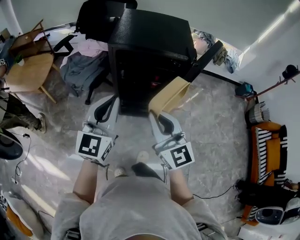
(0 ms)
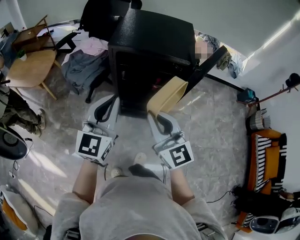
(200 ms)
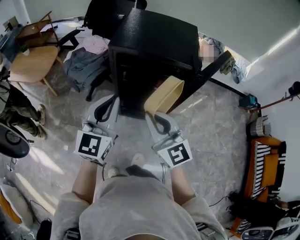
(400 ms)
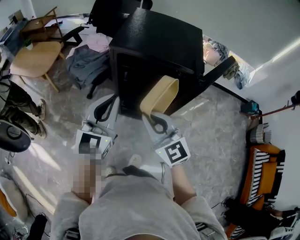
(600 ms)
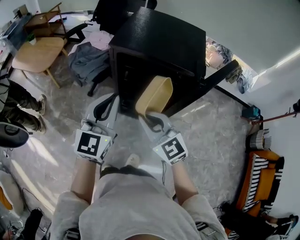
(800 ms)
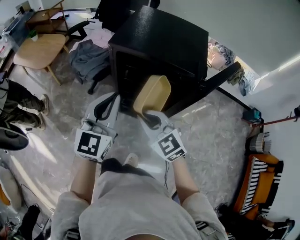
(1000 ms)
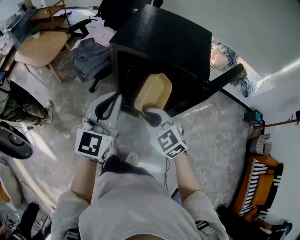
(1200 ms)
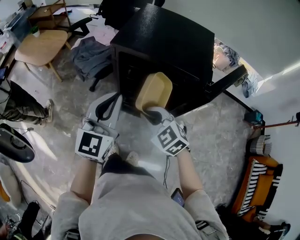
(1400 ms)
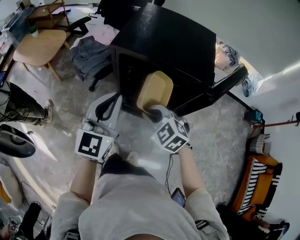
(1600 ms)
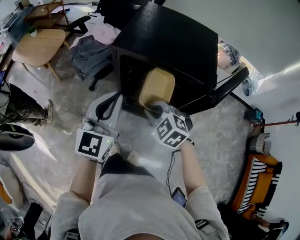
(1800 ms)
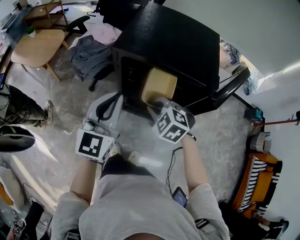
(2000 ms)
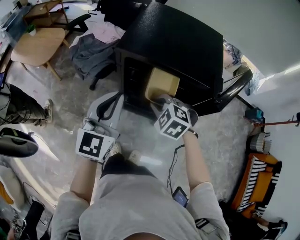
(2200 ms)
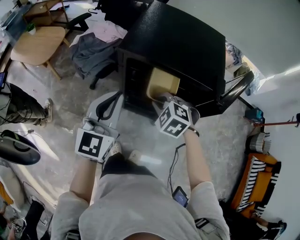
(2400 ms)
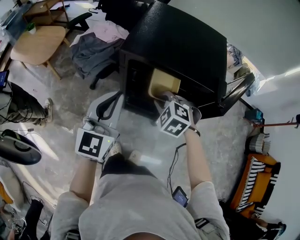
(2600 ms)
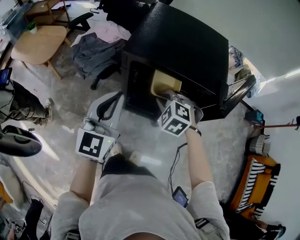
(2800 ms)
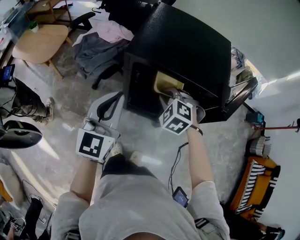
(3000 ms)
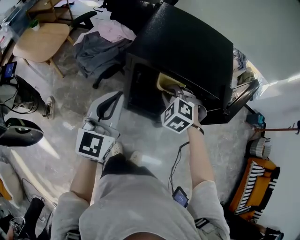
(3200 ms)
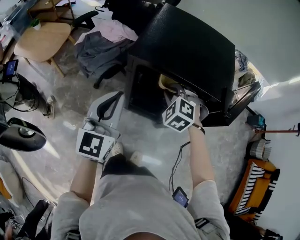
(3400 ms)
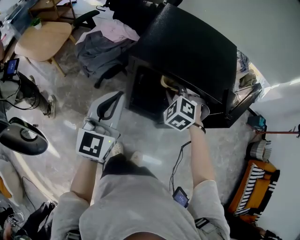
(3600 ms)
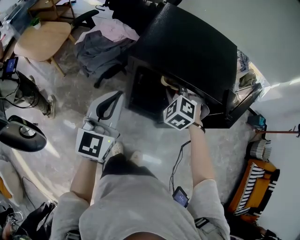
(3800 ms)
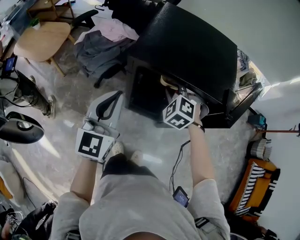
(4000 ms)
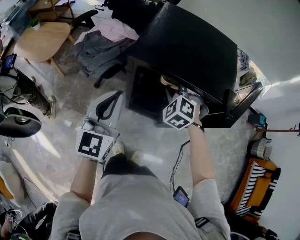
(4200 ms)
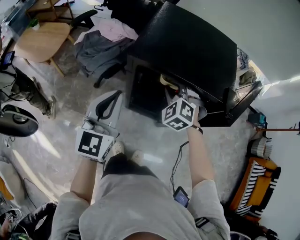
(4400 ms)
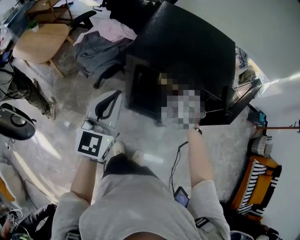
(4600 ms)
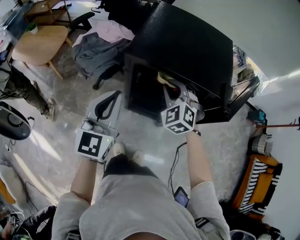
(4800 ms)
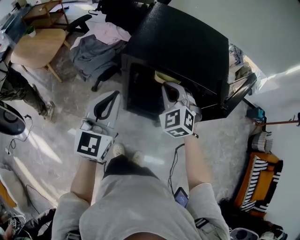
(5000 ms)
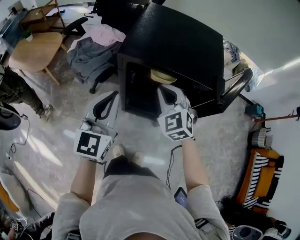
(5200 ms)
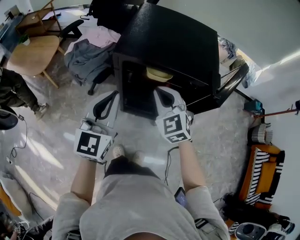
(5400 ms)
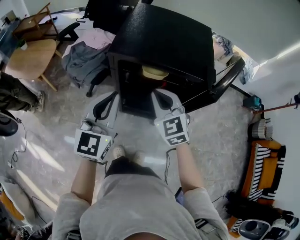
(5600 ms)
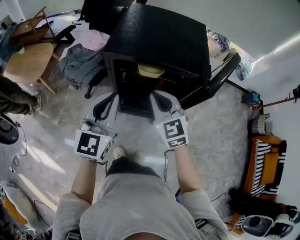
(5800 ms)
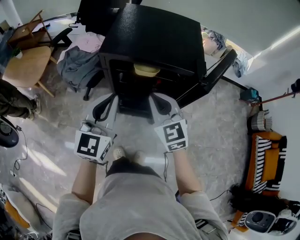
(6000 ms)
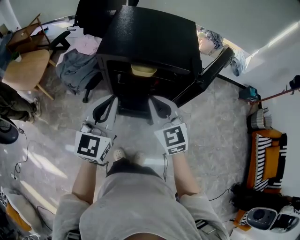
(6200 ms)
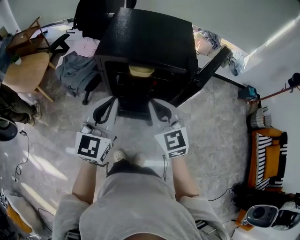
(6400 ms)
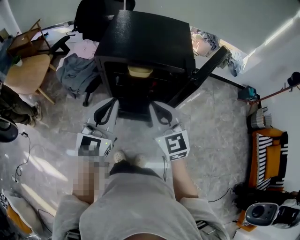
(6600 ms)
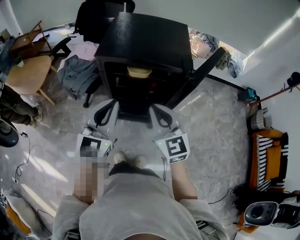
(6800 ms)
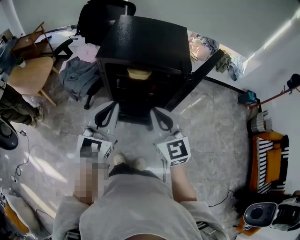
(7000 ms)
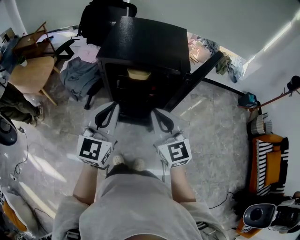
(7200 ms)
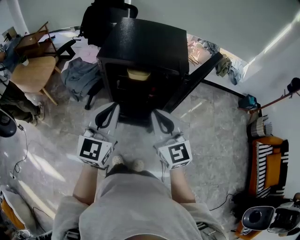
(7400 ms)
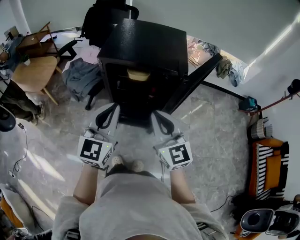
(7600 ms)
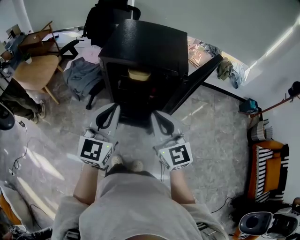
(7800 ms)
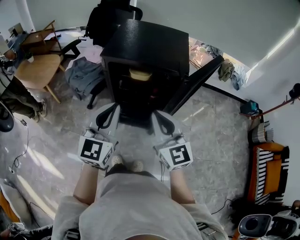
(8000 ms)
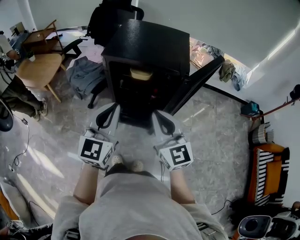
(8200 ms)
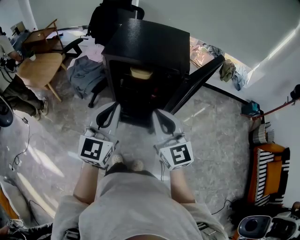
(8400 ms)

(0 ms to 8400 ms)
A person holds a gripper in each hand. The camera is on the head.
0 ms - 1400 ms: The left gripper travels forward and to the right by about 10 cm; the right gripper moves downward and forward, about 15 cm, and angles its fingers downward, by approximately 40 degrees.
1400 ms - 2800 ms: The right gripper is displaced forward by some 10 cm, and changes its angle by roughly 30 degrees, while the left gripper shifts roughly 5 cm forward.
2800 ms - 4200 ms: The right gripper goes roughly 10 cm forward.
4200 ms - 5600 ms: The left gripper shifts by roughly 5 cm. The right gripper goes about 15 cm backward and upward, and swivels some 40 degrees.
5600 ms - 7000 ms: The left gripper goes roughly 10 cm backward and to the right, while the right gripper goes approximately 15 cm backward, to the right and upward, and turns by roughly 20 degrees.
7000 ms - 8400 ms: The right gripper changes place by about 5 cm. The left gripper changes place by approximately 5 cm.

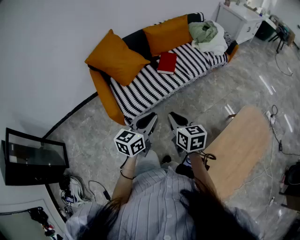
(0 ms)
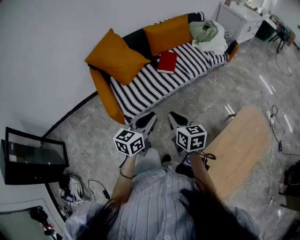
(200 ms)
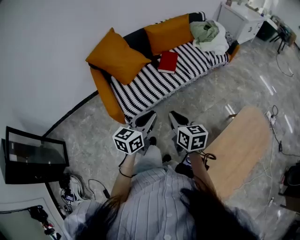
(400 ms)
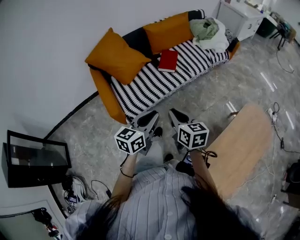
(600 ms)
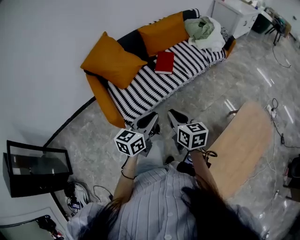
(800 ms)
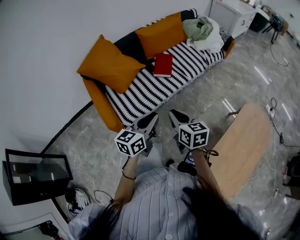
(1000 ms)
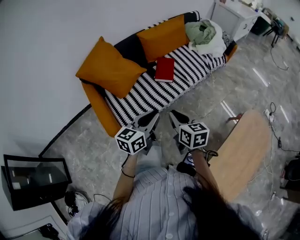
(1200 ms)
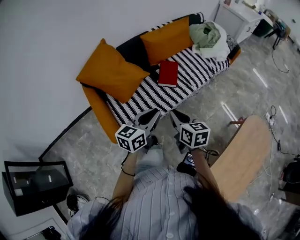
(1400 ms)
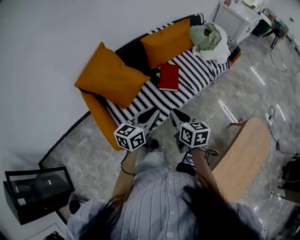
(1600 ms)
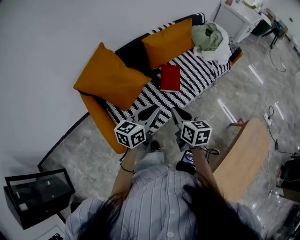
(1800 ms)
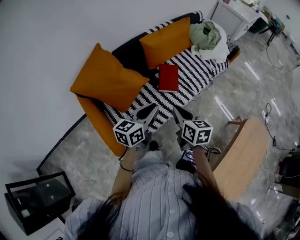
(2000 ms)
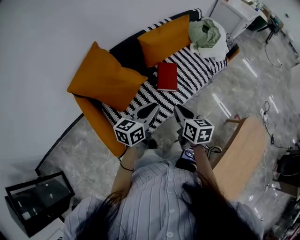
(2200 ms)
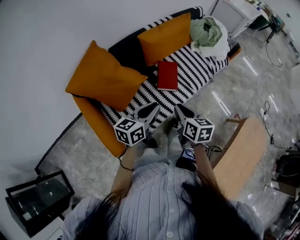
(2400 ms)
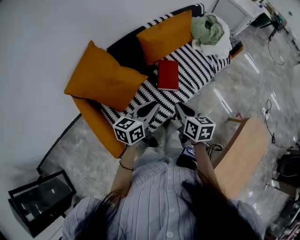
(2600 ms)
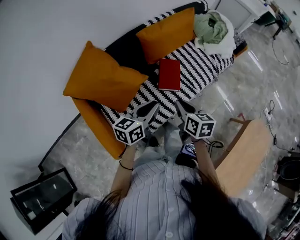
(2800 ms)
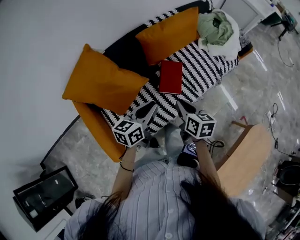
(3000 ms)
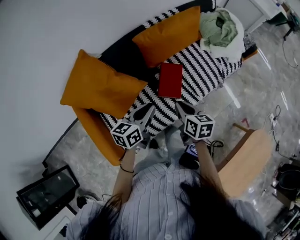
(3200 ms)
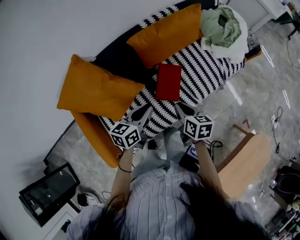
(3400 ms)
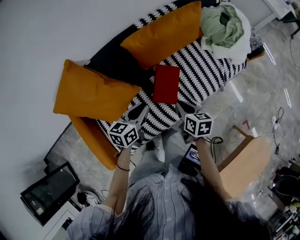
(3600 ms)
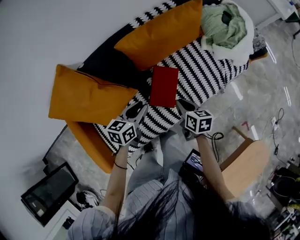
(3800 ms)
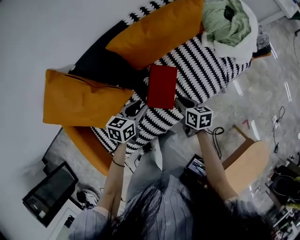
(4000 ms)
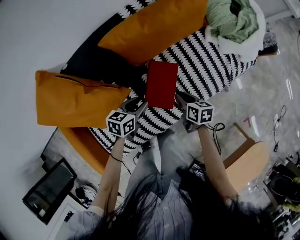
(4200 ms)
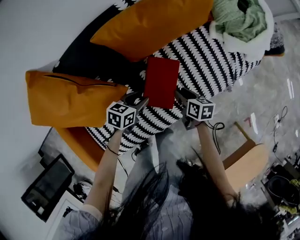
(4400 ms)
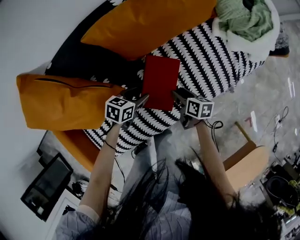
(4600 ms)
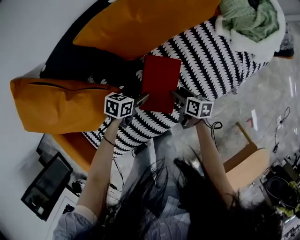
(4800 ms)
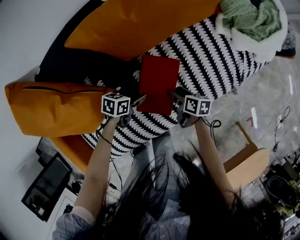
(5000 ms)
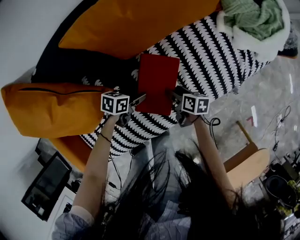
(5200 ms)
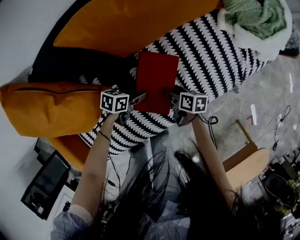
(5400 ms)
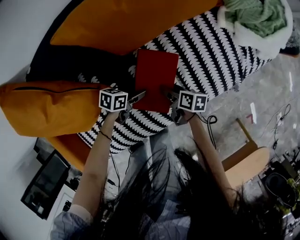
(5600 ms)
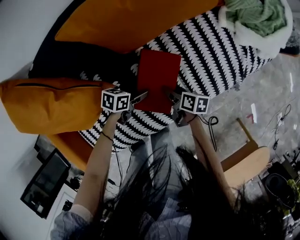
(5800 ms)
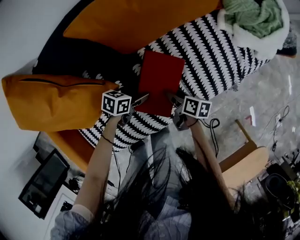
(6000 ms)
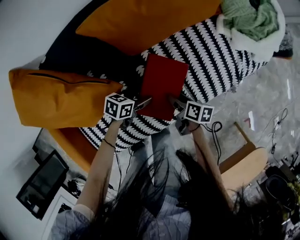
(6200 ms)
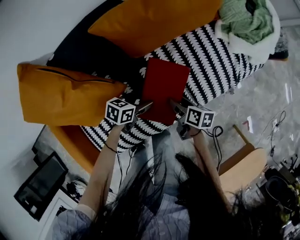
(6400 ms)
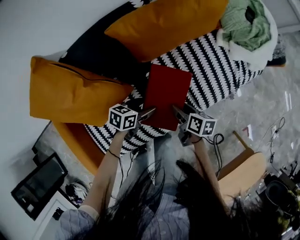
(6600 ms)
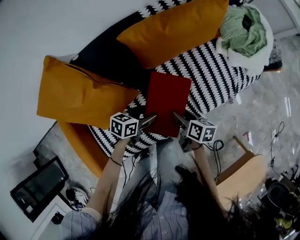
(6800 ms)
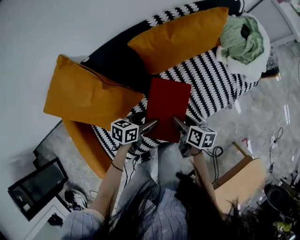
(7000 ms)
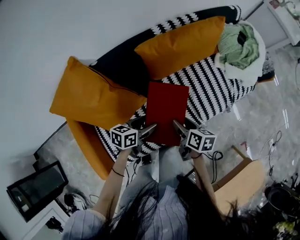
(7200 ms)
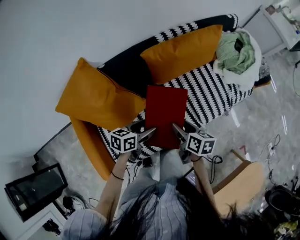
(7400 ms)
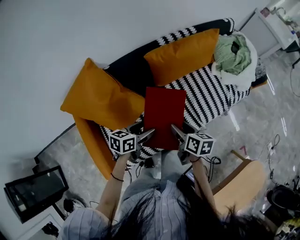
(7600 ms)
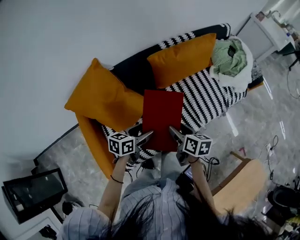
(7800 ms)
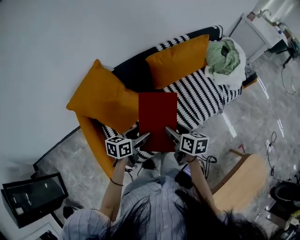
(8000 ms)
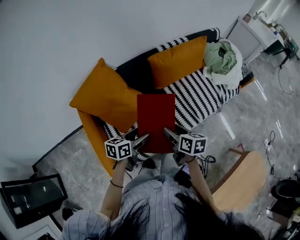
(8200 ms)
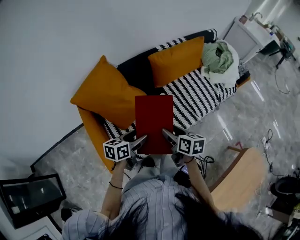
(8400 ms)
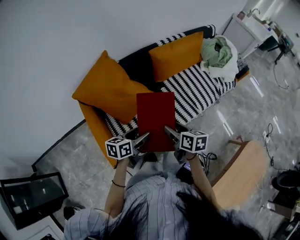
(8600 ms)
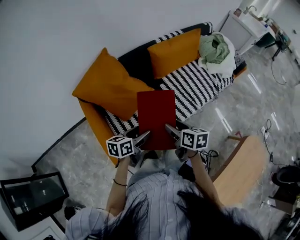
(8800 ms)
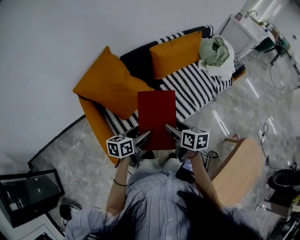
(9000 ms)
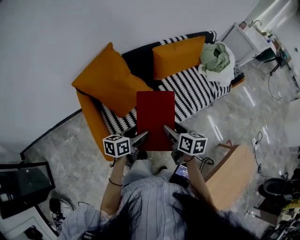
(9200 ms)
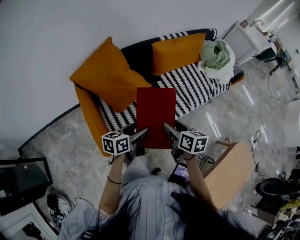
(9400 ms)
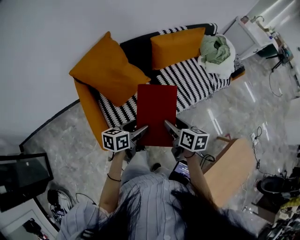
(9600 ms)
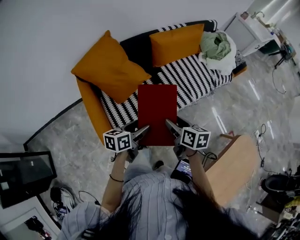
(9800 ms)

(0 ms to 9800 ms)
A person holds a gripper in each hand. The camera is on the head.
0 ms - 1400 ms: Both grippers move forward, roughly 20 cm.
1400 ms - 2800 ms: The grippers both shift forward by some 20 cm.
2800 ms - 4200 ms: Both grippers travel together downward and forward, approximately 40 cm. The right gripper changes its angle by approximately 20 degrees. The left gripper turns by approximately 30 degrees.
4200 ms - 5600 ms: Both grippers travel together downward, some 20 cm. The left gripper rotates some 20 degrees, and opens up. The right gripper changes its angle by approximately 20 degrees, and opens its fingers.
5600 ms - 7000 ms: Both grippers move upward, approximately 25 cm.
7000 ms - 8400 ms: The two grippers go about 35 cm backward, upward and to the left.
8400 ms - 9800 ms: The grippers both shift backward by about 15 cm.

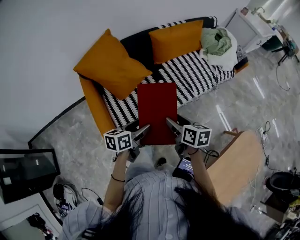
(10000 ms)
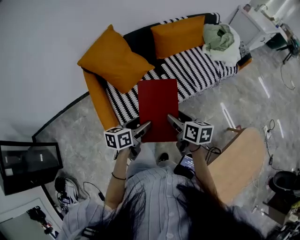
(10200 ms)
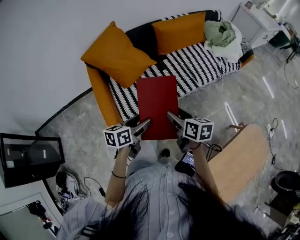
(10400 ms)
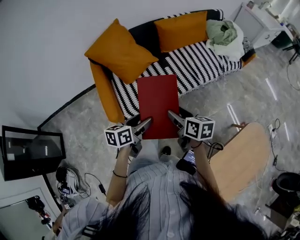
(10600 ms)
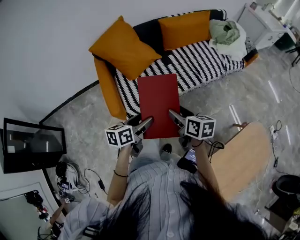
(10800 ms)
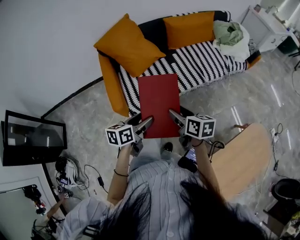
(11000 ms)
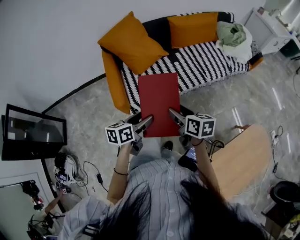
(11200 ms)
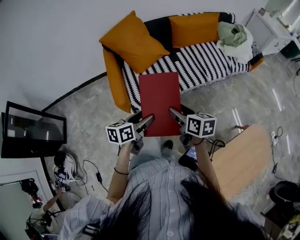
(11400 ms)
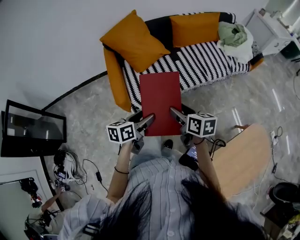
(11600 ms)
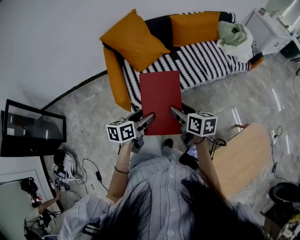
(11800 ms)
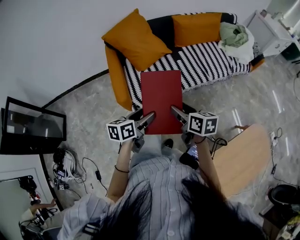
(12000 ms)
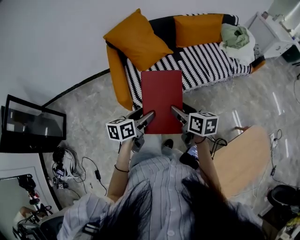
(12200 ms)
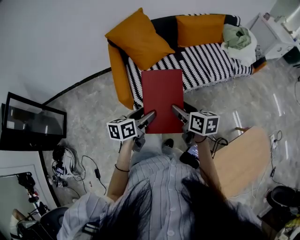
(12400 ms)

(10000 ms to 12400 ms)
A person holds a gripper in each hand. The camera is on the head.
10000 ms - 11200 ms: Both grippers travel together backward, some 15 cm.
11200 ms - 12400 ms: The grippers move only a little.

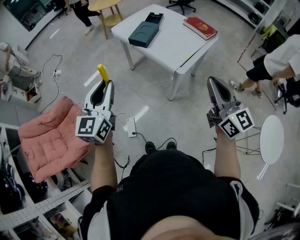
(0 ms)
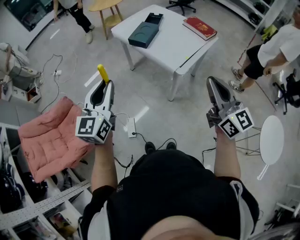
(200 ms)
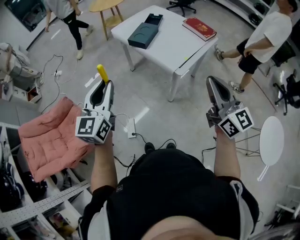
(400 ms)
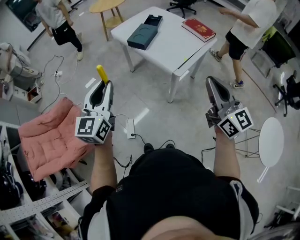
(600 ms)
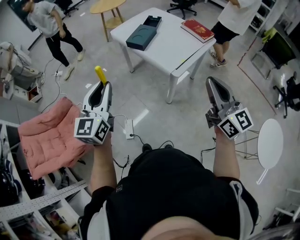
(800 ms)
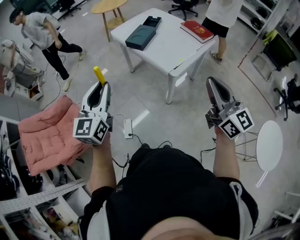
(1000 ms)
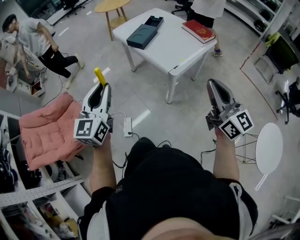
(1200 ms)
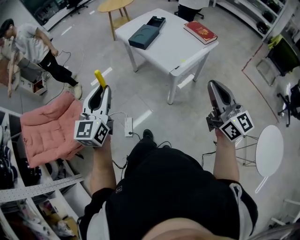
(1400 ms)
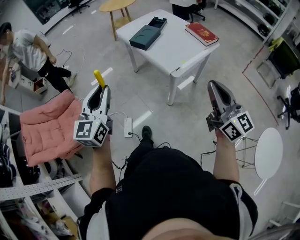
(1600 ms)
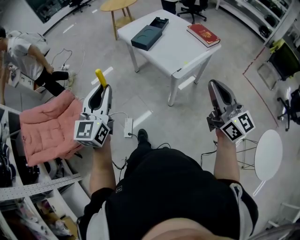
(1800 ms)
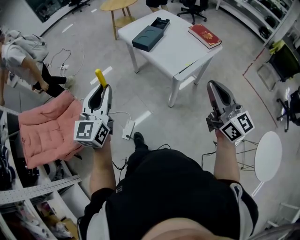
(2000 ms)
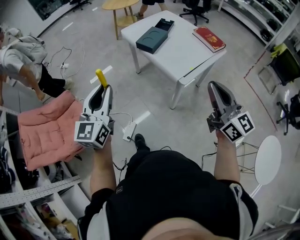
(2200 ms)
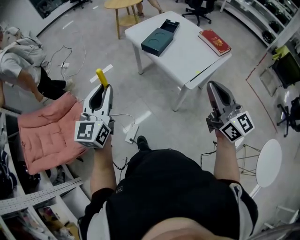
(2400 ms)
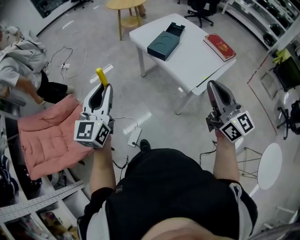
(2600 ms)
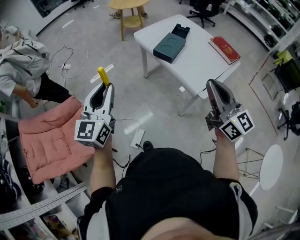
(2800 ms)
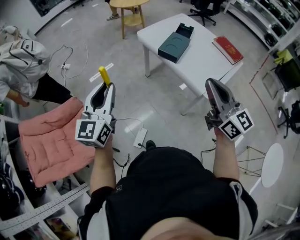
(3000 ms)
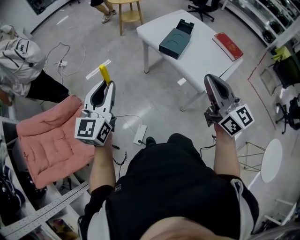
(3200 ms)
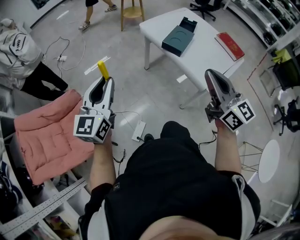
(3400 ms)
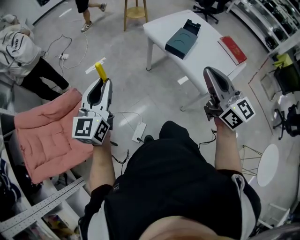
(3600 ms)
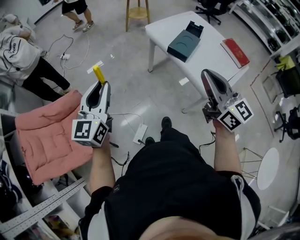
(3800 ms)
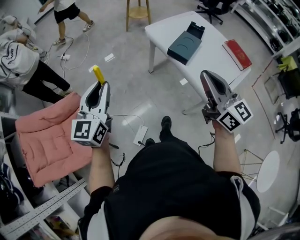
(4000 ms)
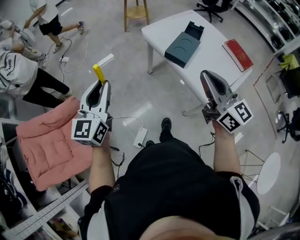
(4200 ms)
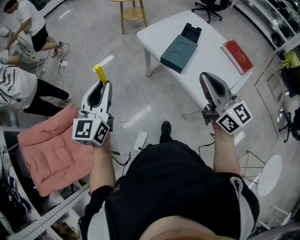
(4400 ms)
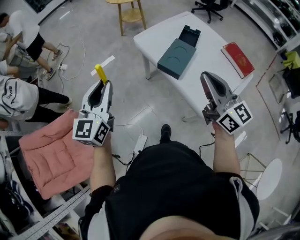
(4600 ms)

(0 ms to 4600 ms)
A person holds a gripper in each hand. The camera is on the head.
0 ms - 1600 ms: The left gripper moves backward, roughly 5 cm, while the right gripper is displaced to the right by about 10 cm.
1600 ms - 3000 ms: The grippers both shift forward and to the left by roughly 30 cm.
3000 ms - 4600 ms: The two grippers go roughly 20 cm forward.
